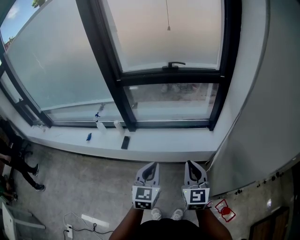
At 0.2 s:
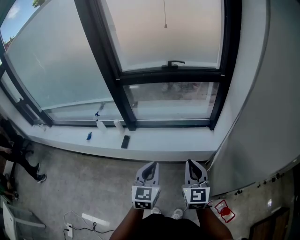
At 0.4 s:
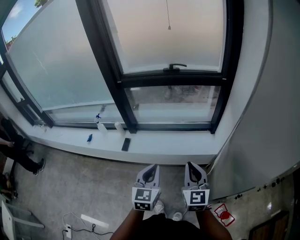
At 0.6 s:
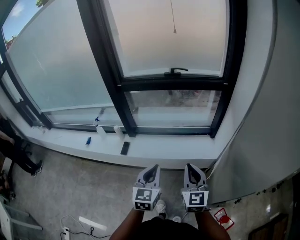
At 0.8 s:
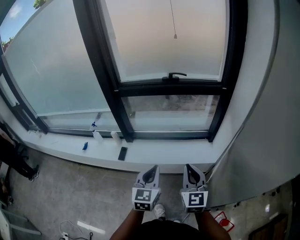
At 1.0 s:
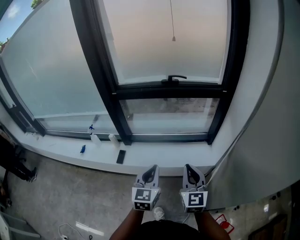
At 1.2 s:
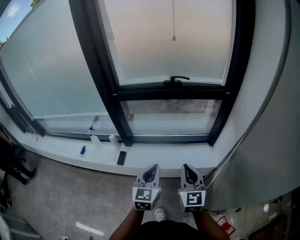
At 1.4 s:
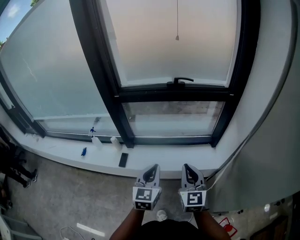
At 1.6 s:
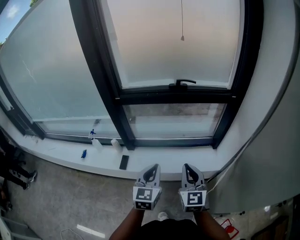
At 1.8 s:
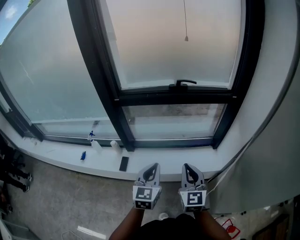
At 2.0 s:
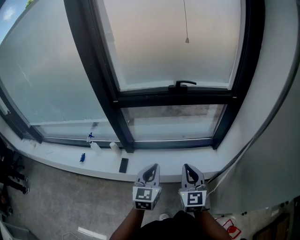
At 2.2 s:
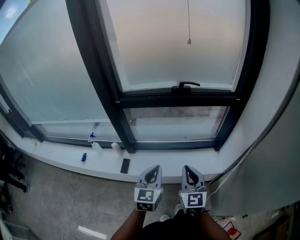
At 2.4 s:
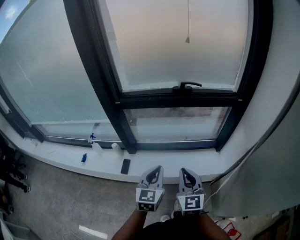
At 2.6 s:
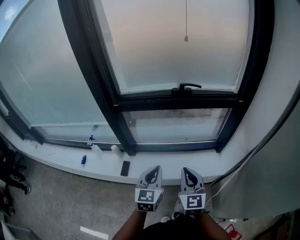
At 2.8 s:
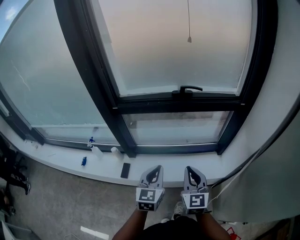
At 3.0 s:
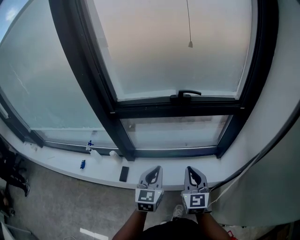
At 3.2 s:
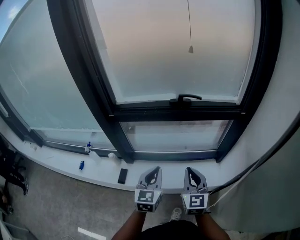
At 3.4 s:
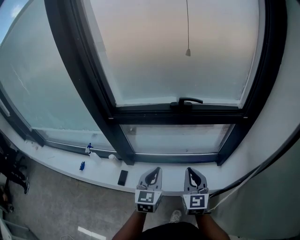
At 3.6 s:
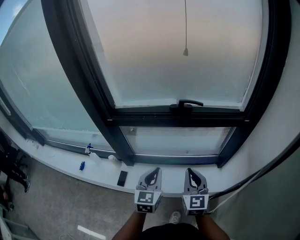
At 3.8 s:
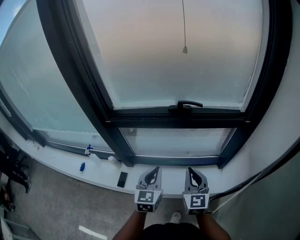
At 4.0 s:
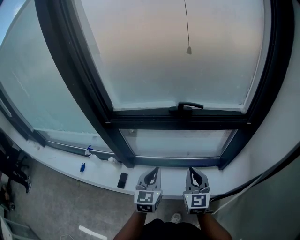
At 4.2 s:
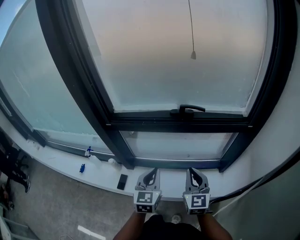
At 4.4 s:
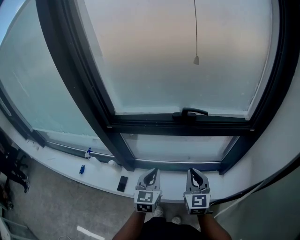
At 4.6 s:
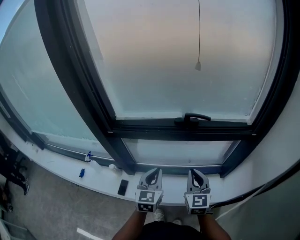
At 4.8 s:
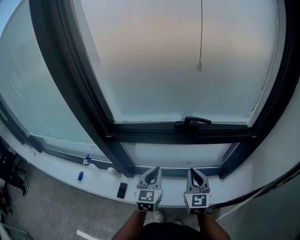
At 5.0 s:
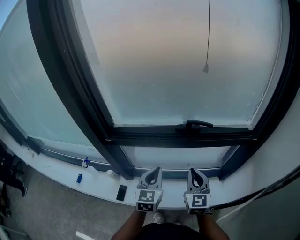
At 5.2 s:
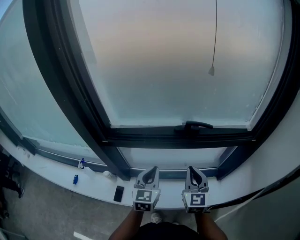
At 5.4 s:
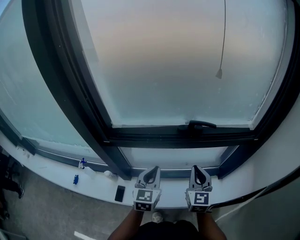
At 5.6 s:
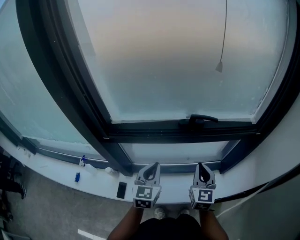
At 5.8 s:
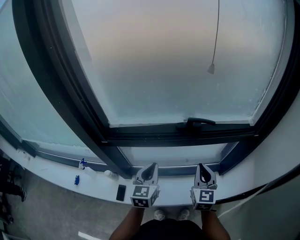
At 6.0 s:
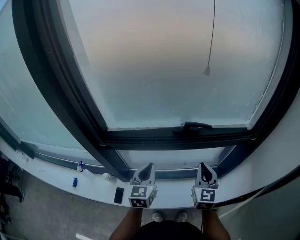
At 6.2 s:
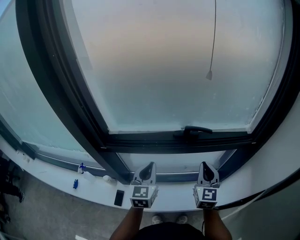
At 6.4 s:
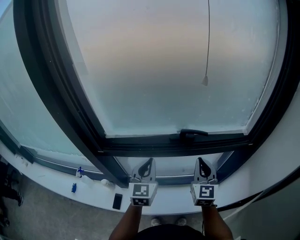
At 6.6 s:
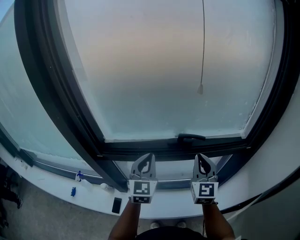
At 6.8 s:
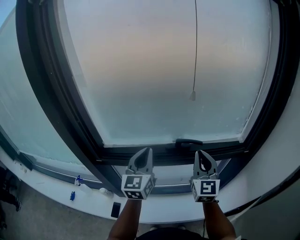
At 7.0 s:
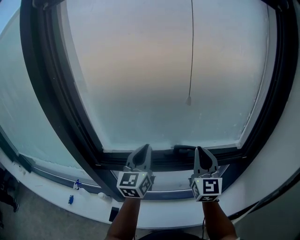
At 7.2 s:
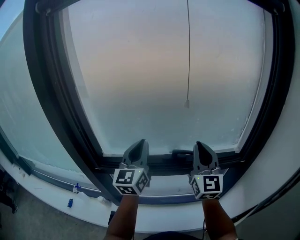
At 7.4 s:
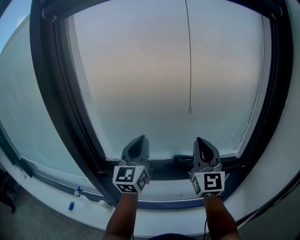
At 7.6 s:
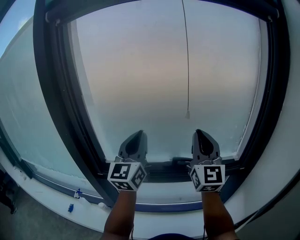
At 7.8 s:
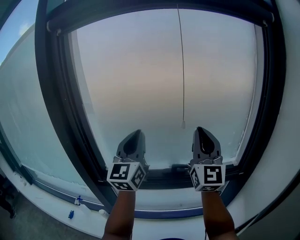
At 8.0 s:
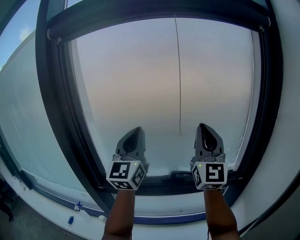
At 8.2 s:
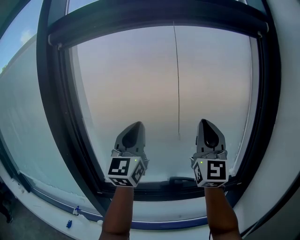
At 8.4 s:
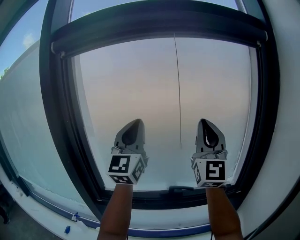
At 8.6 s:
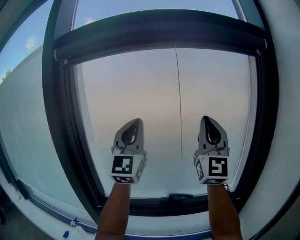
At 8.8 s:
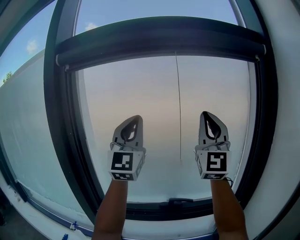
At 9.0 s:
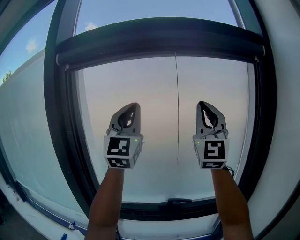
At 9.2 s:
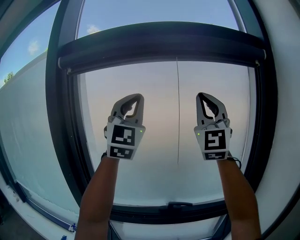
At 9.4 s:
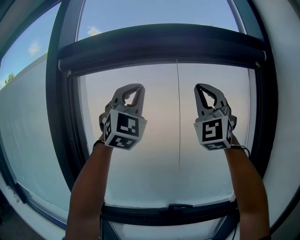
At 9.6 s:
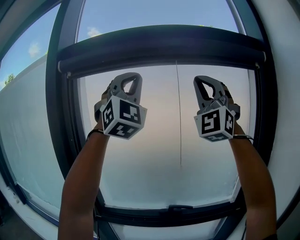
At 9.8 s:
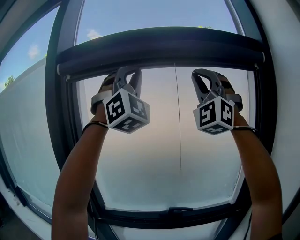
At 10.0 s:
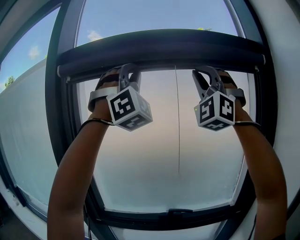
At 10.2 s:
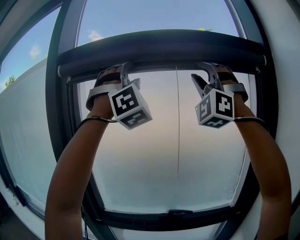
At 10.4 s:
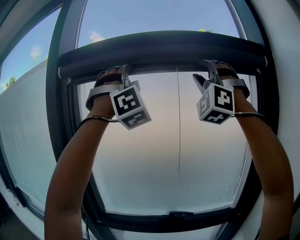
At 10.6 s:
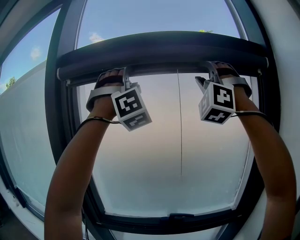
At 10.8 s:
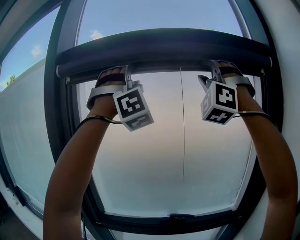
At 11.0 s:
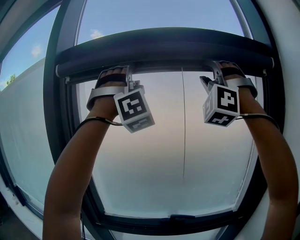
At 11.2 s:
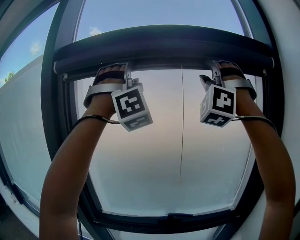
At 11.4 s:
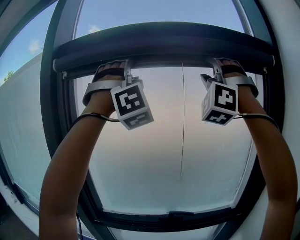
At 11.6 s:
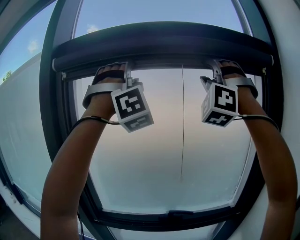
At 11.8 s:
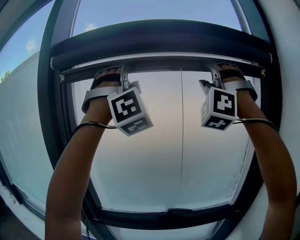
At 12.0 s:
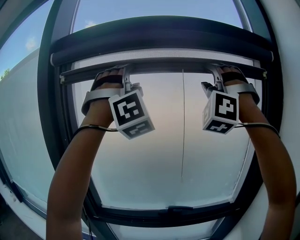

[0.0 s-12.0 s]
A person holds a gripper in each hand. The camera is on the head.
0.0 to 1.6 s: The left gripper shifts about 20 cm forward, while the right gripper travels forward and to the left by approximately 20 cm.
1.6 to 3.0 s: Both grippers travel together forward, roughly 10 cm.
3.0 to 4.4 s: Both grippers move forward, approximately 10 cm.
4.4 to 6.0 s: Both grippers travel together forward, some 10 cm.
6.0 to 7.6 s: Both grippers move upward, about 30 cm. The left gripper tilts its fingers roughly 40 degrees upward; the right gripper tilts its fingers about 30 degrees upward.
7.6 to 9.0 s: Both grippers travel together upward, roughly 25 cm. The left gripper rotates approximately 30 degrees. The right gripper changes its angle by approximately 30 degrees.
9.0 to 10.4 s: Both grippers move upward, some 15 cm. The left gripper twists approximately 70 degrees clockwise, seen from behind, and opens, while the right gripper rolls counterclockwise, seen from behind, by about 60 degrees, and opens.
10.4 to 12.0 s: The right gripper shifts some 5 cm downward.

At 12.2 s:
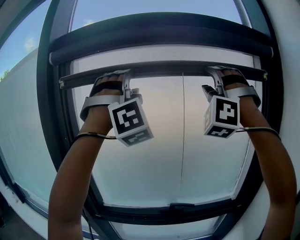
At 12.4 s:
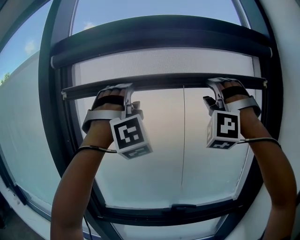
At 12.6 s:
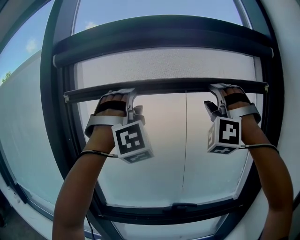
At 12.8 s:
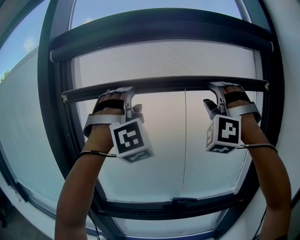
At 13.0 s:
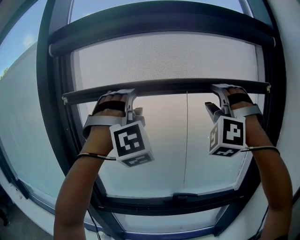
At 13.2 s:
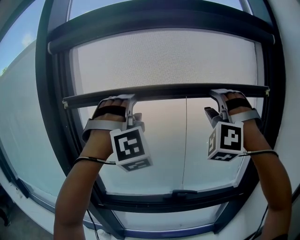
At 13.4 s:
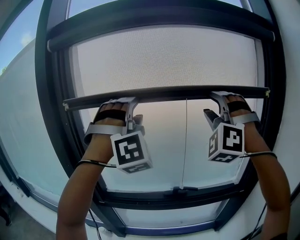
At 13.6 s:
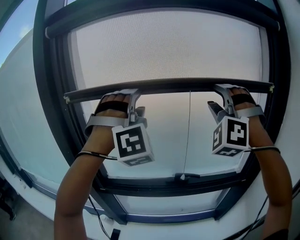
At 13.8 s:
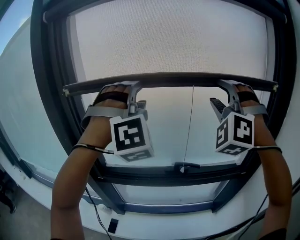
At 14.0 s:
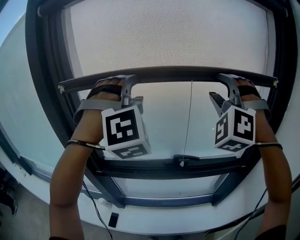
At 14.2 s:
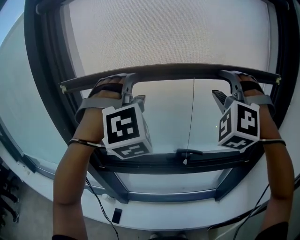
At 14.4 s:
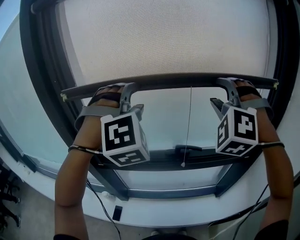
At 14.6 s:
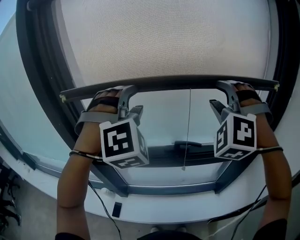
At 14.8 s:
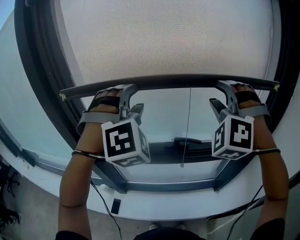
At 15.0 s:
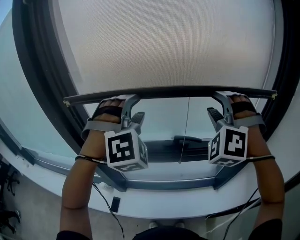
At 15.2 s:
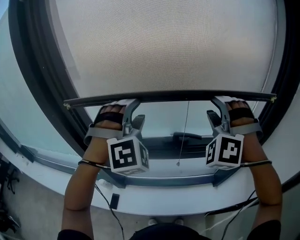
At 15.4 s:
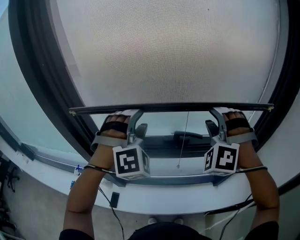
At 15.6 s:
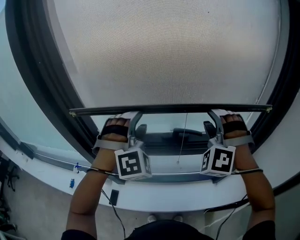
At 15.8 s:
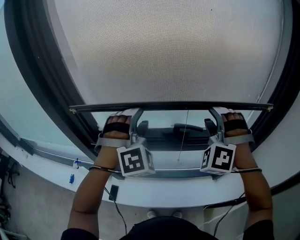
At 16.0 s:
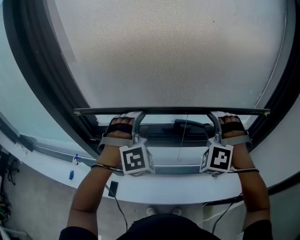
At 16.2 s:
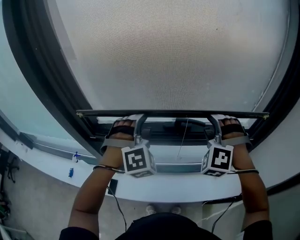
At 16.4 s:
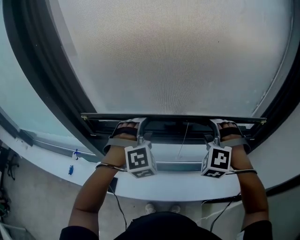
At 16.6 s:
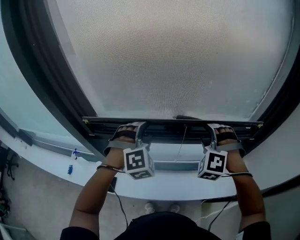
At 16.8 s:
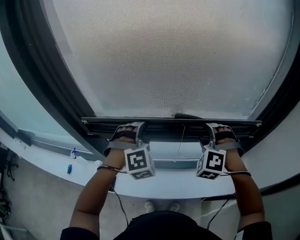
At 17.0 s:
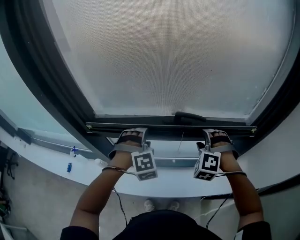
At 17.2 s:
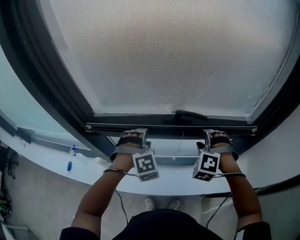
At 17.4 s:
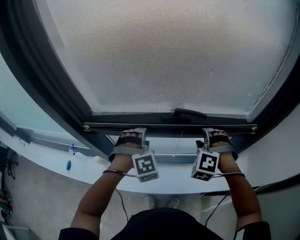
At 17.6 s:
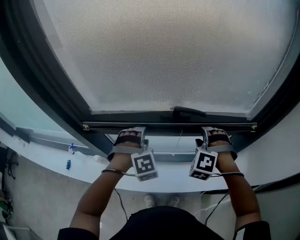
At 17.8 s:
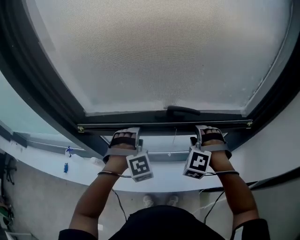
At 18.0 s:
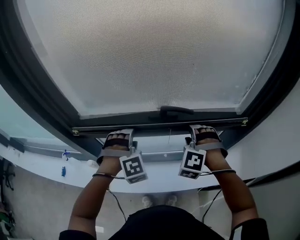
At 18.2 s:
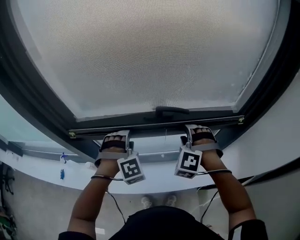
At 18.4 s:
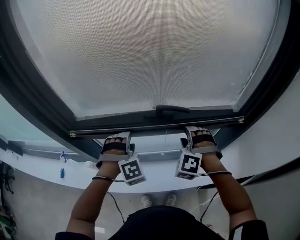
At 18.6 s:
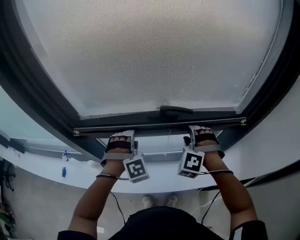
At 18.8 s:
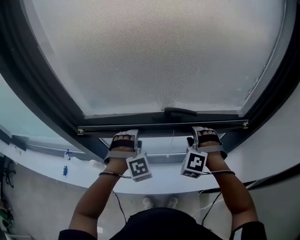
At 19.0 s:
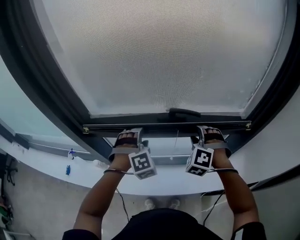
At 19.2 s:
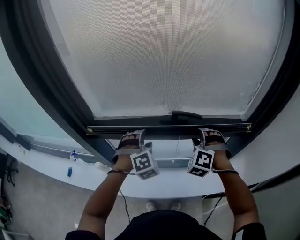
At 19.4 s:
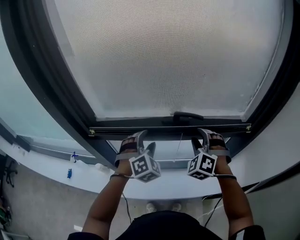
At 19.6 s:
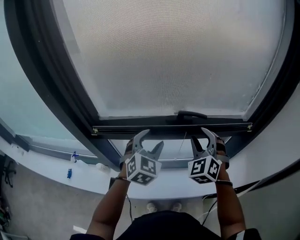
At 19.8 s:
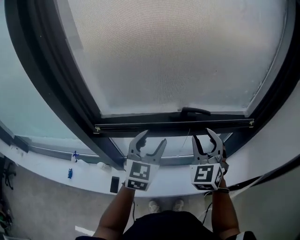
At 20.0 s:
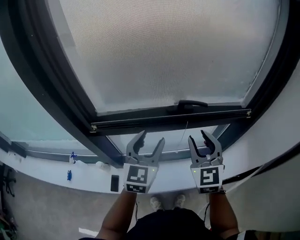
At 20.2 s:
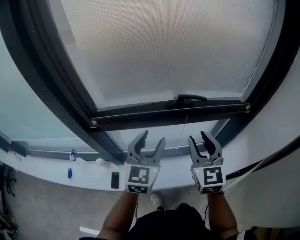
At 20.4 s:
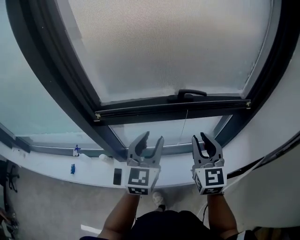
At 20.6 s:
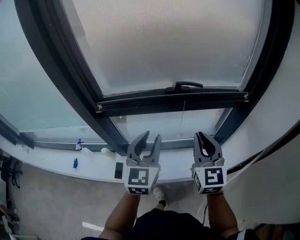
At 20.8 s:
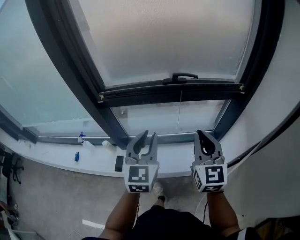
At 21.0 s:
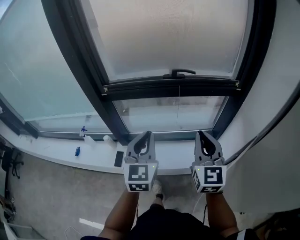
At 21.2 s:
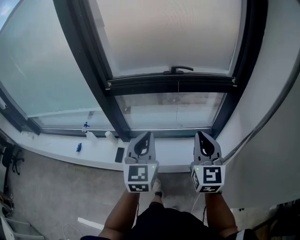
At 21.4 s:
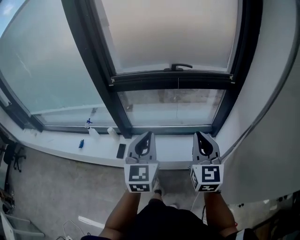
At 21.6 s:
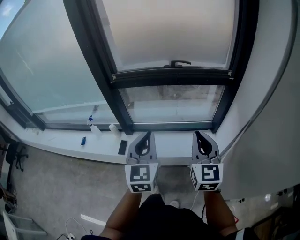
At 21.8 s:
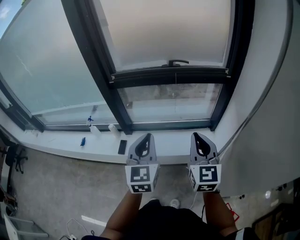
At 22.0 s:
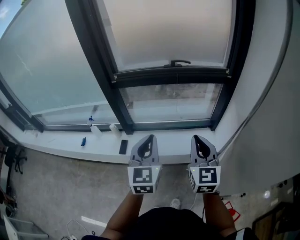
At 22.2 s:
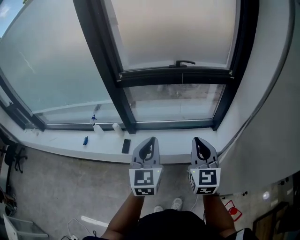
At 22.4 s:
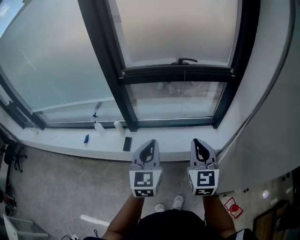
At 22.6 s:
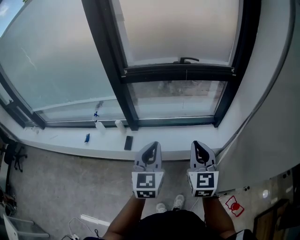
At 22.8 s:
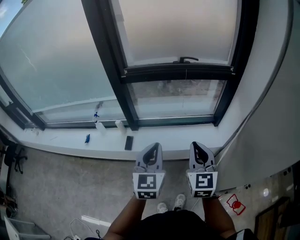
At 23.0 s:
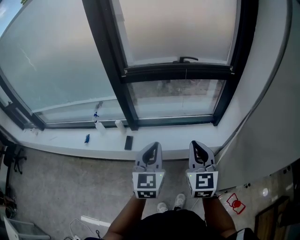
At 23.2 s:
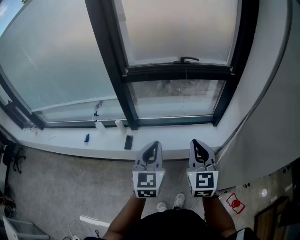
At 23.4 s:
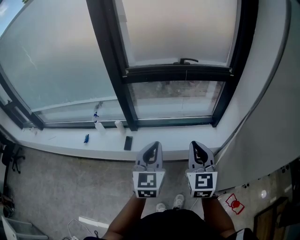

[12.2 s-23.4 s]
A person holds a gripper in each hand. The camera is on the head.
12.2 to 13.8 s: The grippers both shift downward by some 20 cm. The right gripper rotates about 20 degrees. Meanwhile the left gripper swivels approximately 20 degrees.
13.8 to 15.4 s: The two grippers go approximately 25 cm downward.
15.4 to 17.0 s: The two grippers go about 20 cm downward. The left gripper turns by about 20 degrees. Meanwhile the right gripper turns by about 30 degrees.
17.0 to 18.6 s: The grippers make only small movements.
18.6 to 20.2 s: The right gripper goes approximately 15 cm backward, upward and to the left, and twists some 70 degrees clockwise, seen from behind. The left gripper shifts about 15 cm upward and backward, and rotates around the line of its fingers by some 70 degrees, counterclockwise from behind.
20.2 to 21.8 s: The two grippers go approximately 35 cm backward. The right gripper closes its fingers. The left gripper closes.
21.8 to 23.4 s: Both grippers travel together backward and to the left, some 10 cm.
